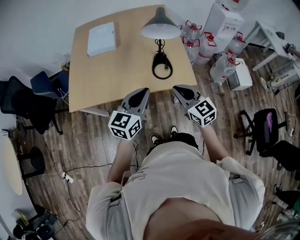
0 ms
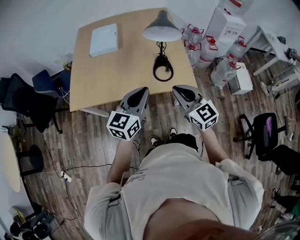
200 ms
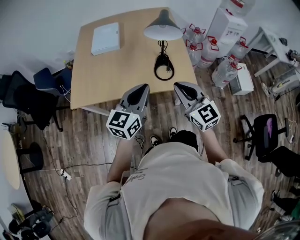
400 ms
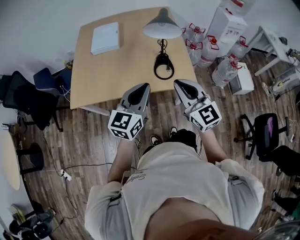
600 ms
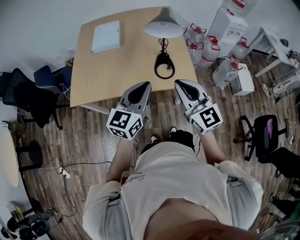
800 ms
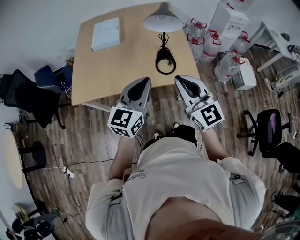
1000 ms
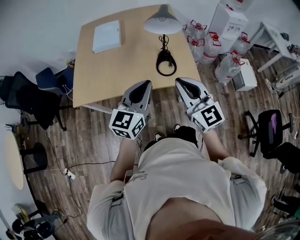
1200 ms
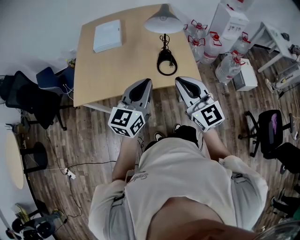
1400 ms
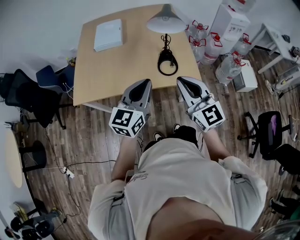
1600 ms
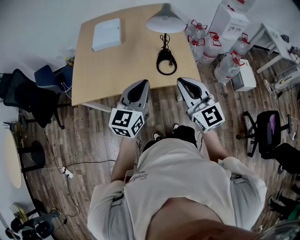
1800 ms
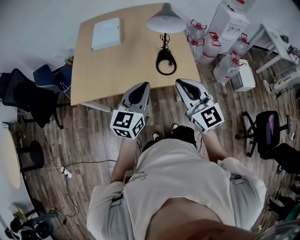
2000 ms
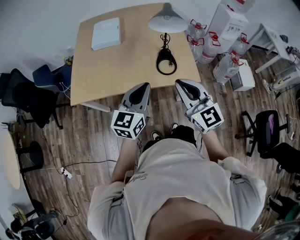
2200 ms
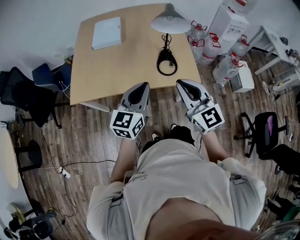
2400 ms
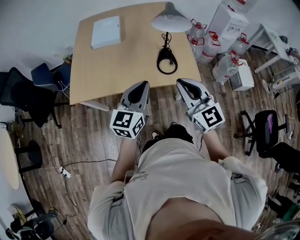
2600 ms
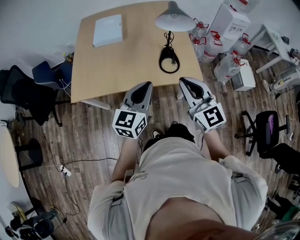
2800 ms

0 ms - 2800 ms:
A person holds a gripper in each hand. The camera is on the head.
0 ms - 1400 ms: The right gripper goes roughly 10 cm upward, while the left gripper shifts by some 5 cm.
1400 ms - 2800 ms: The grippers make only small movements.

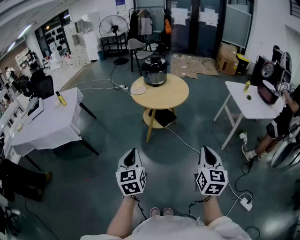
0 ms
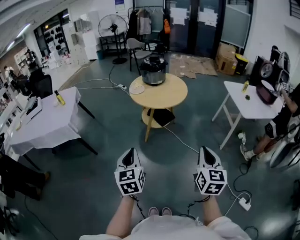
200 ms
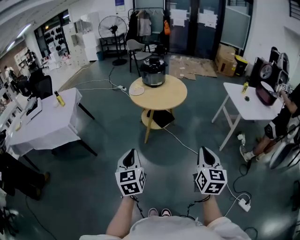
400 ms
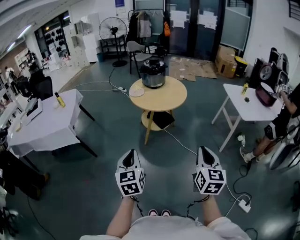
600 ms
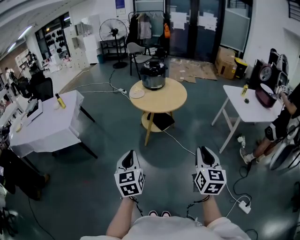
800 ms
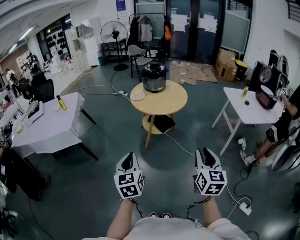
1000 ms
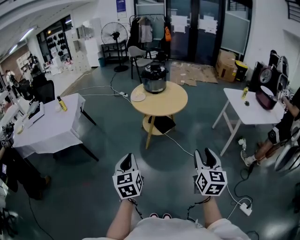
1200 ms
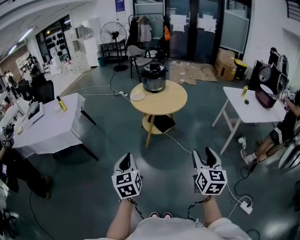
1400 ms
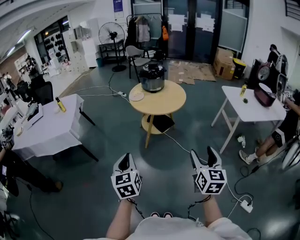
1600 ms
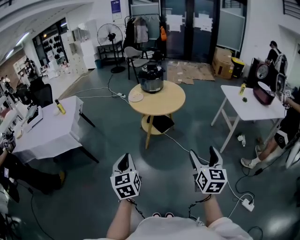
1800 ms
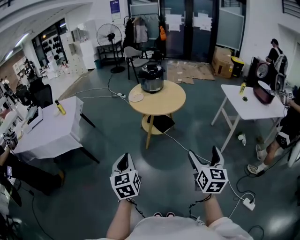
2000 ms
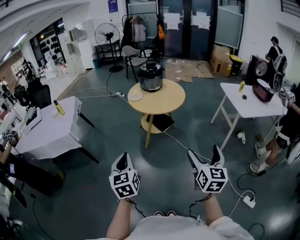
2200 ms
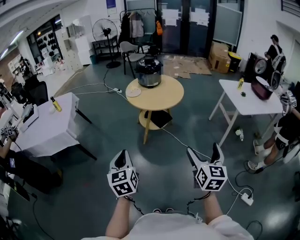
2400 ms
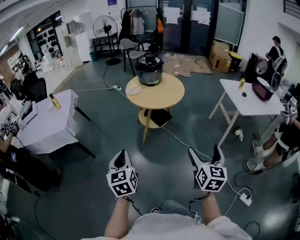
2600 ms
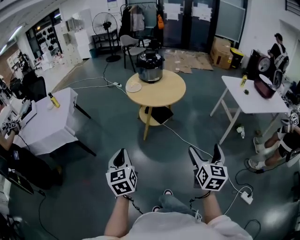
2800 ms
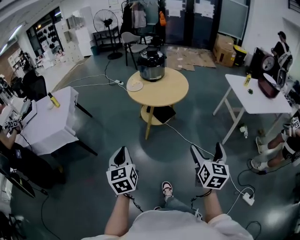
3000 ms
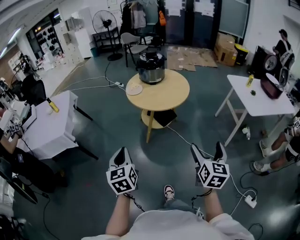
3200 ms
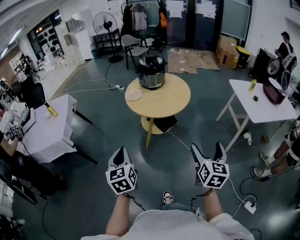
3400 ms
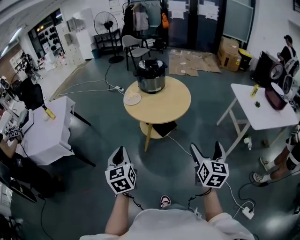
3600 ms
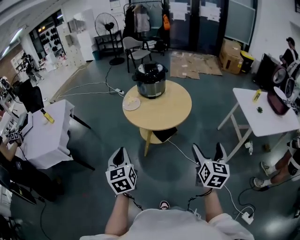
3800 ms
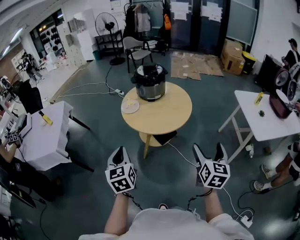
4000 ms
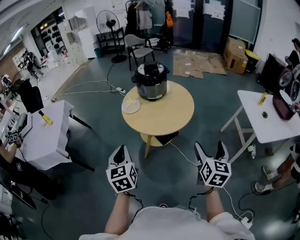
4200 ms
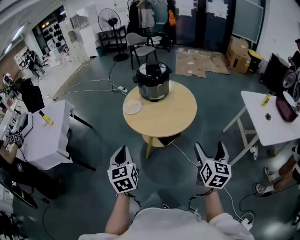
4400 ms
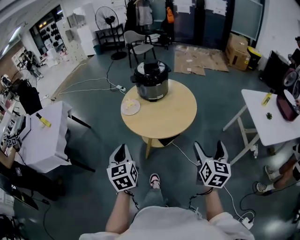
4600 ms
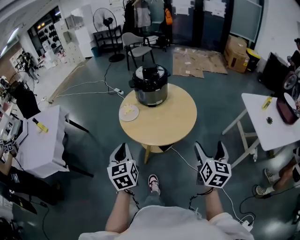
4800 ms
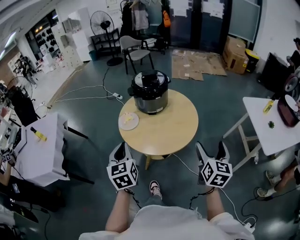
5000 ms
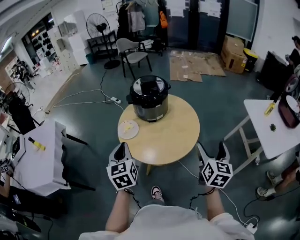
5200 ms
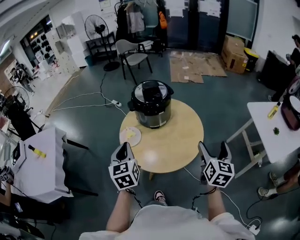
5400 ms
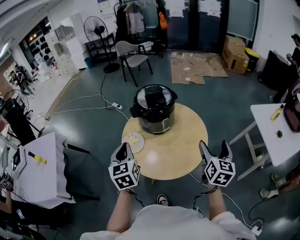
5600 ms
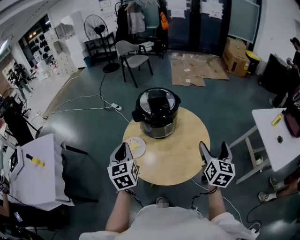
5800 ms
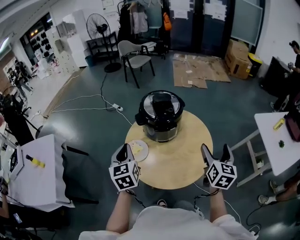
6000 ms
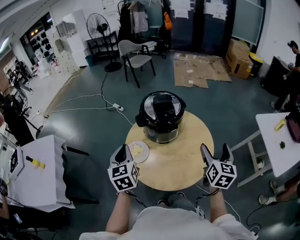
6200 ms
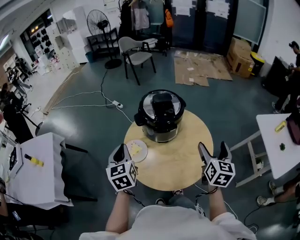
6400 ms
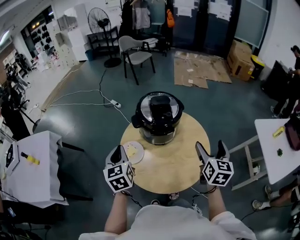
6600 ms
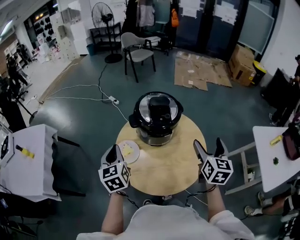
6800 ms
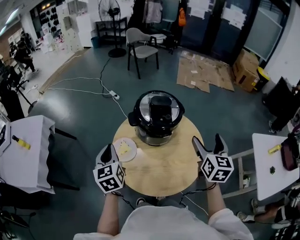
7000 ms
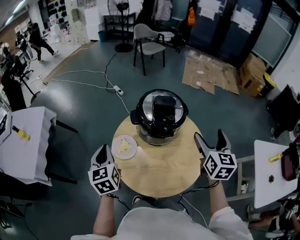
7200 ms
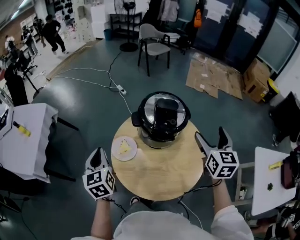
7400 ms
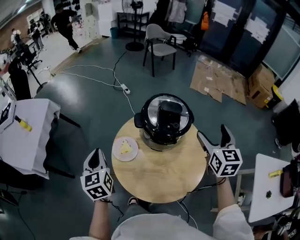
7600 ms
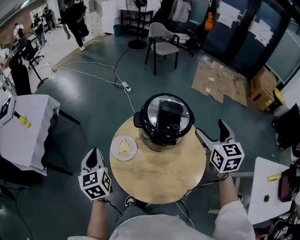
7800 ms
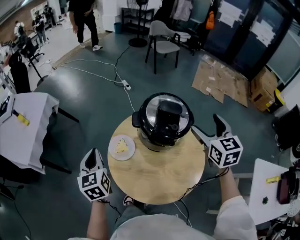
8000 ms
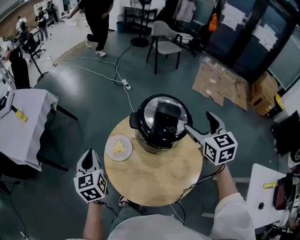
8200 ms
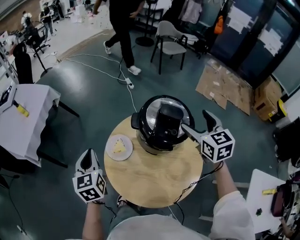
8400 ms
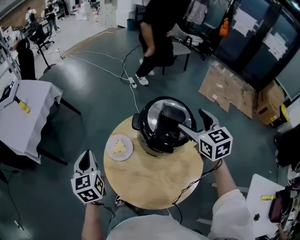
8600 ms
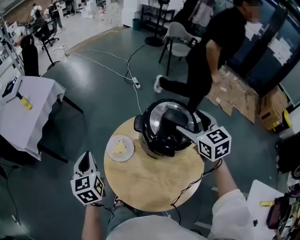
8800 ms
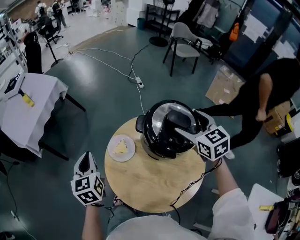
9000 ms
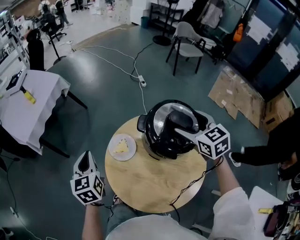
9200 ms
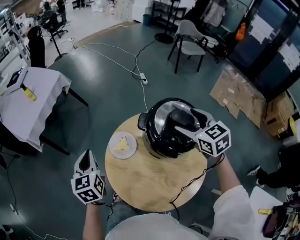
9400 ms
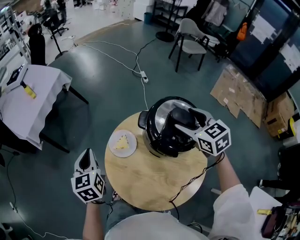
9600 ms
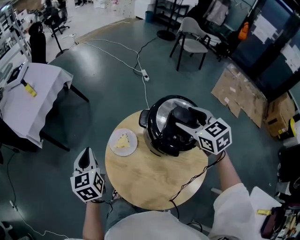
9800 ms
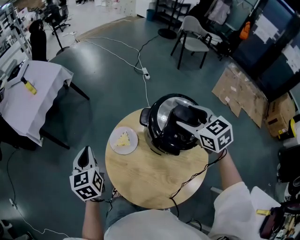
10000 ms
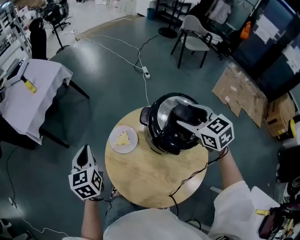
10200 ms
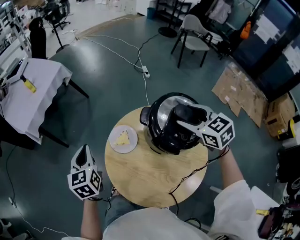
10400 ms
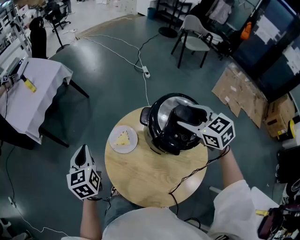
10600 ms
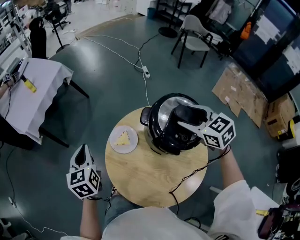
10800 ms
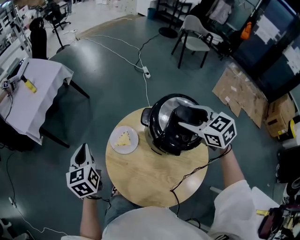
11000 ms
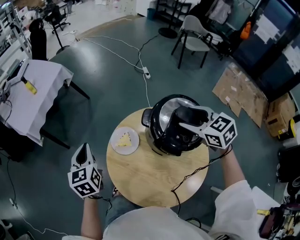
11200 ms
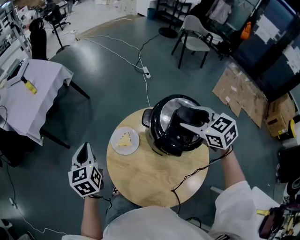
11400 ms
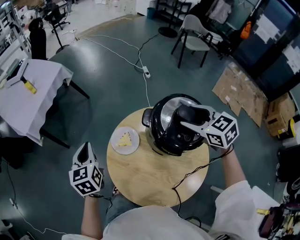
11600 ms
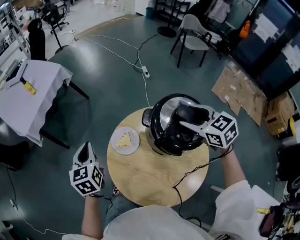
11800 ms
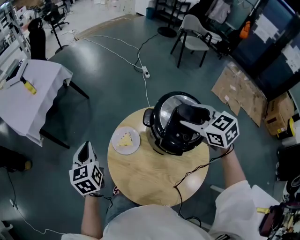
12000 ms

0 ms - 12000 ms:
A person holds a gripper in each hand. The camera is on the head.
0 ms - 1600 ms: The right gripper opens.
1600 ms - 3000 ms: The two grippers go roughly 5 cm forward. The right gripper opens its fingers.
3000 ms - 4400 ms: The grippers both shift forward by about 30 cm.
4400 ms - 6000 ms: The two grippers go approximately 35 cm forward.
6000 ms - 7600 ms: The right gripper moves some 20 cm, and changes its angle by some 40 degrees, while the left gripper moves roughly 5 cm, and turns by about 20 degrees.
7600 ms - 9000 ms: The right gripper changes place by roughly 20 cm, and swivels approximately 40 degrees.
9000 ms - 10400 ms: There are only small adjustments of the grippers.
10400 ms - 12000 ms: The grippers stay close to where they were, moving slightly.

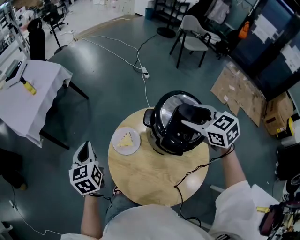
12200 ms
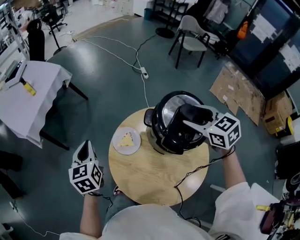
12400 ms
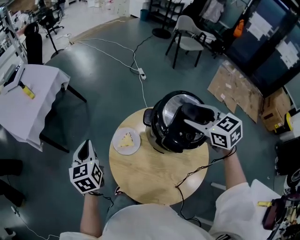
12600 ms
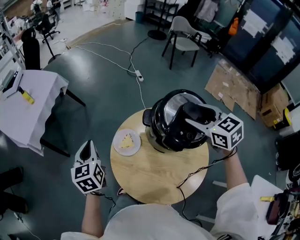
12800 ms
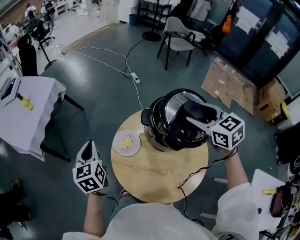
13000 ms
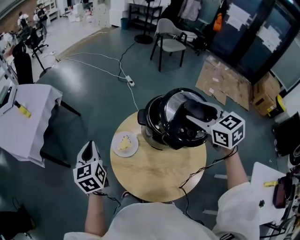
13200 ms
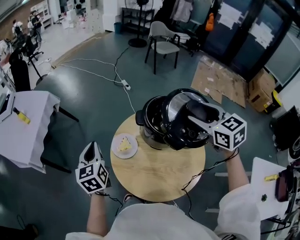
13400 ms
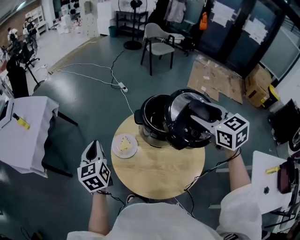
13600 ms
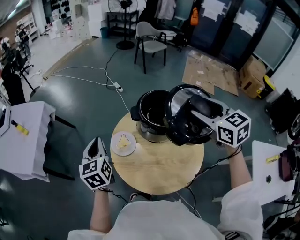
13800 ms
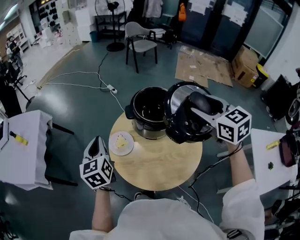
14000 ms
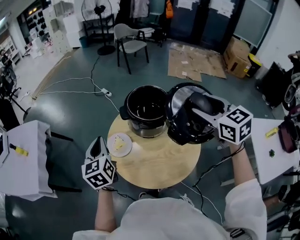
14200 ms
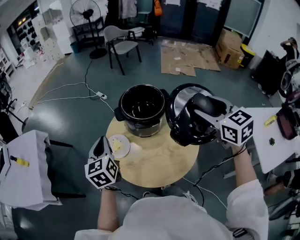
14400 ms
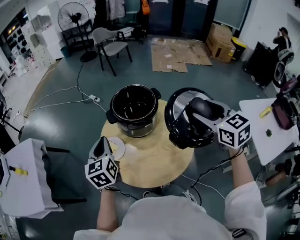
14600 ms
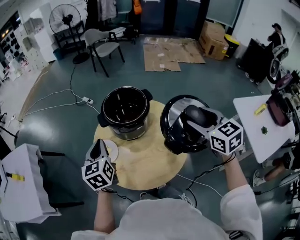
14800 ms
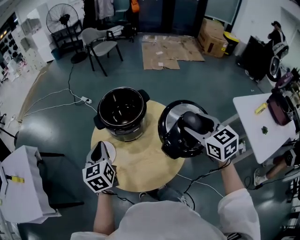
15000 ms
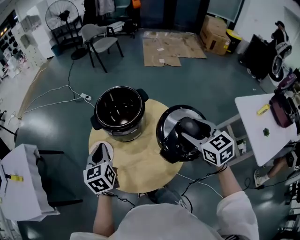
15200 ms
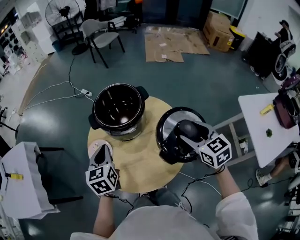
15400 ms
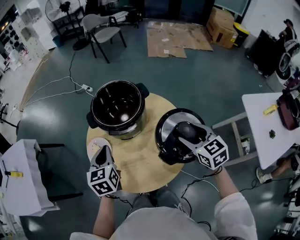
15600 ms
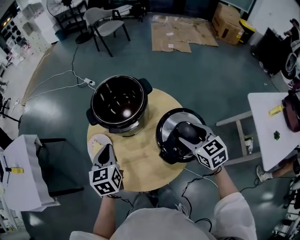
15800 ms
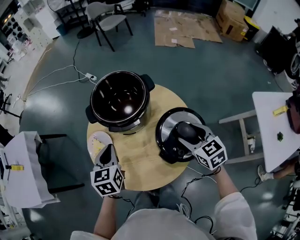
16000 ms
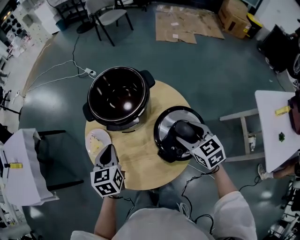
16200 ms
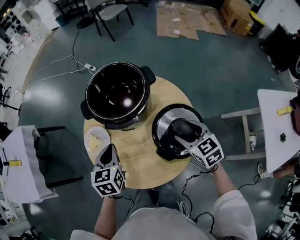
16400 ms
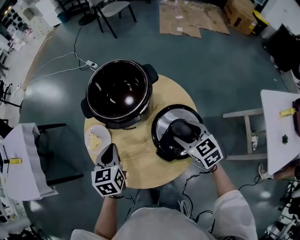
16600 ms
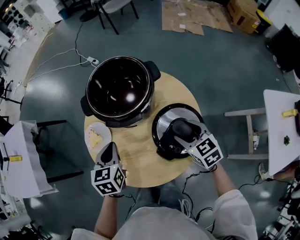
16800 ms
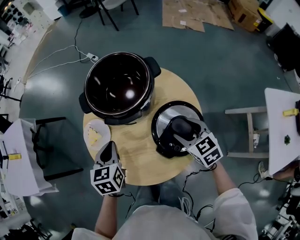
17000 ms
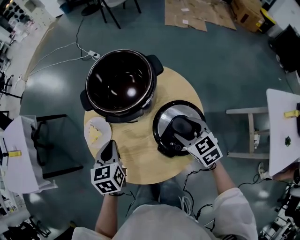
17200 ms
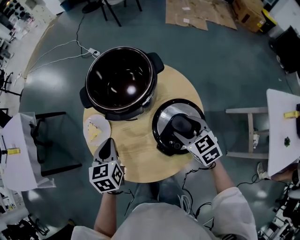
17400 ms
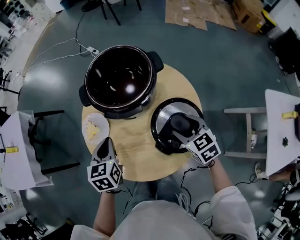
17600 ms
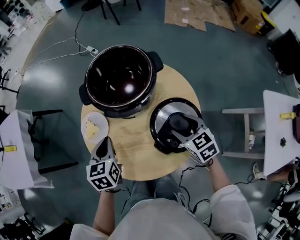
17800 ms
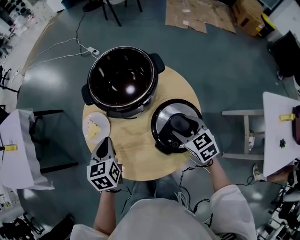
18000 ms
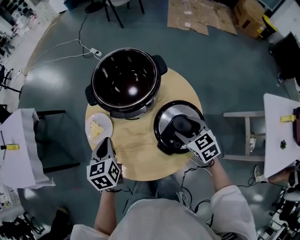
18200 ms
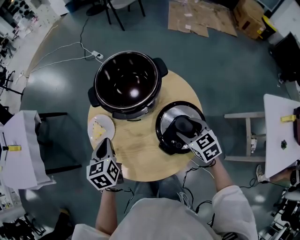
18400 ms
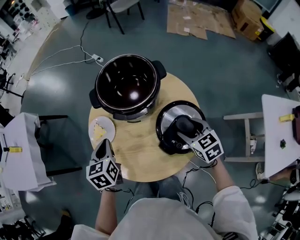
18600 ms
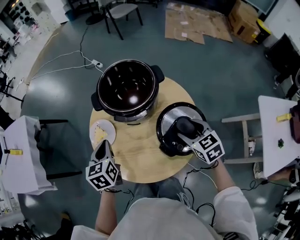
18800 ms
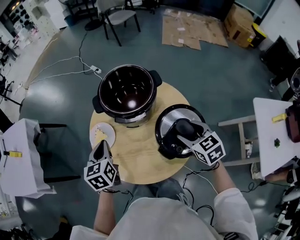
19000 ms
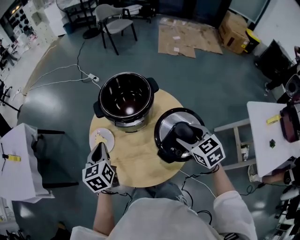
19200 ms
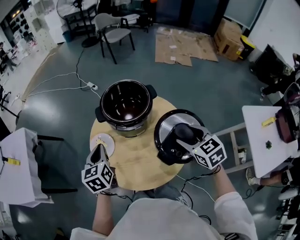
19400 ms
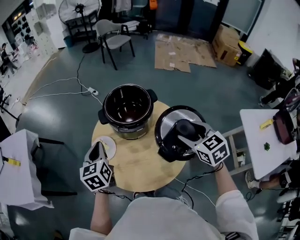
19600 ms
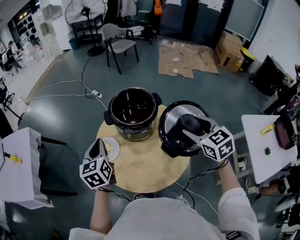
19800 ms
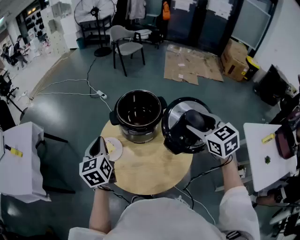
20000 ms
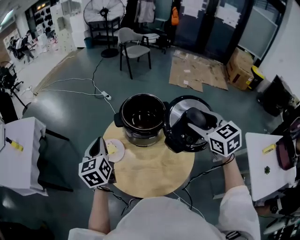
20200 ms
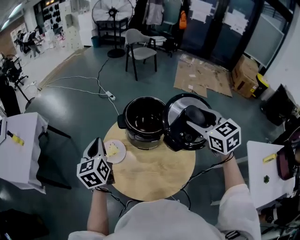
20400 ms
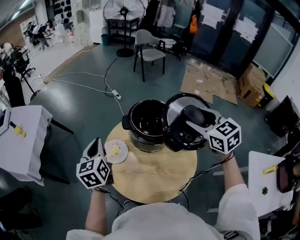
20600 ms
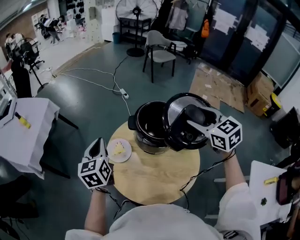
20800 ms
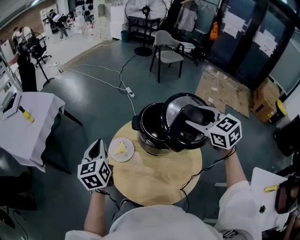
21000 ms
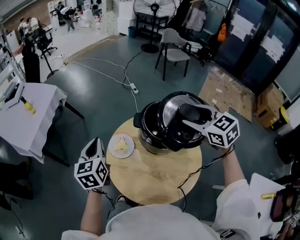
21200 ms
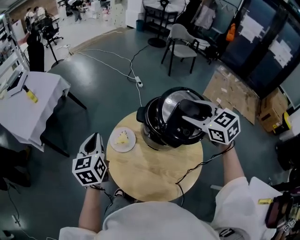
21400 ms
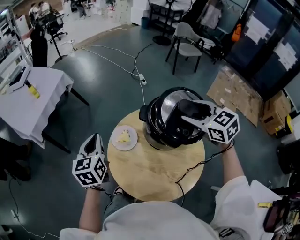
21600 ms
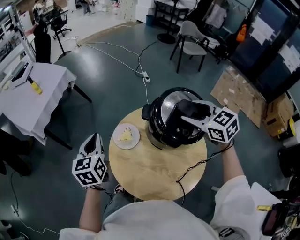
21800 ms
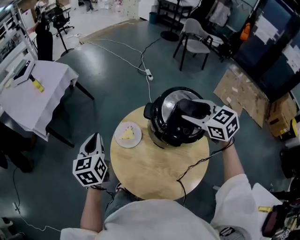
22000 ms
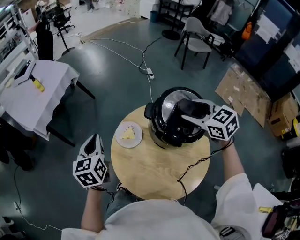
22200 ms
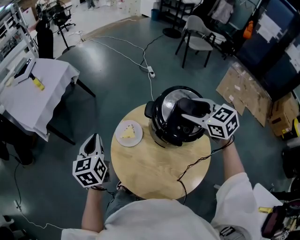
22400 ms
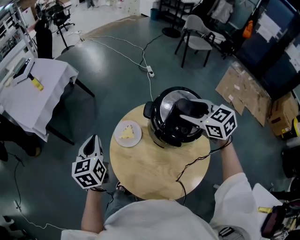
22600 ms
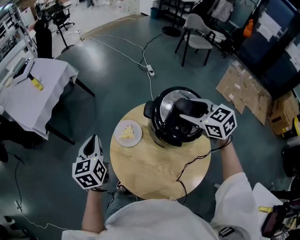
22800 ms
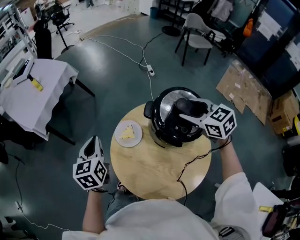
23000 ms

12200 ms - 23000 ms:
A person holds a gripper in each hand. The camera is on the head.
12200 ms - 13800 ms: The right gripper moves some 20 cm, and rotates approximately 30 degrees. Meanwhile the left gripper moves upward, some 5 cm, and rotates about 20 degrees.
13800 ms - 15200 ms: The left gripper heads to the right, covering roughly 15 cm, and swivels some 20 degrees. The right gripper shifts roughly 25 cm downward, backward and to the right, and swivels about 20 degrees.
15200 ms - 16800 ms: The left gripper shifts approximately 10 cm downward, while the right gripper heads downward, covering about 20 cm.
16800 ms - 18400 ms: The grippers stay close to where they were, moving slightly.
18400 ms - 20000 ms: The left gripper shifts approximately 15 cm upward, and turns by about 20 degrees. The right gripper shifts about 25 cm upward.
20000 ms - 21400 ms: The left gripper shifts by about 10 cm, and rotates approximately 20 degrees; the right gripper ends up roughly 20 cm from where it was, and rotates some 40 degrees.
21400 ms - 23000 ms: The right gripper is displaced downward by roughly 5 cm.
